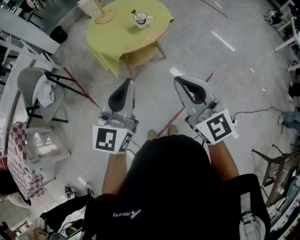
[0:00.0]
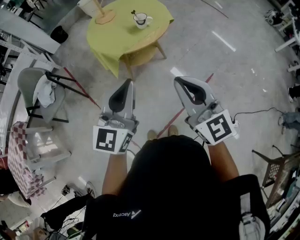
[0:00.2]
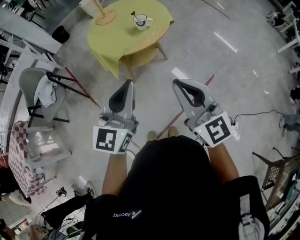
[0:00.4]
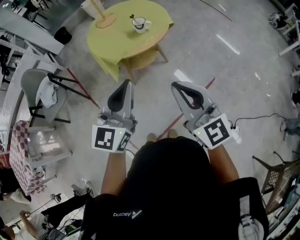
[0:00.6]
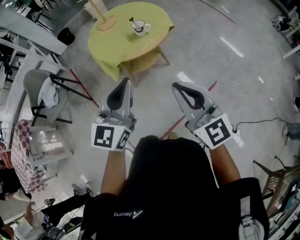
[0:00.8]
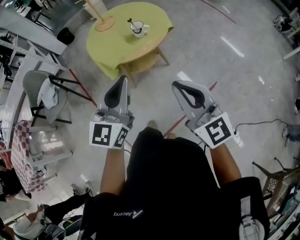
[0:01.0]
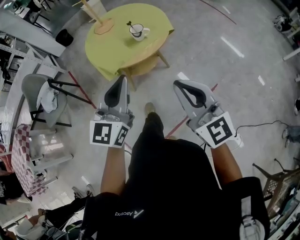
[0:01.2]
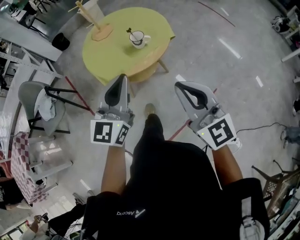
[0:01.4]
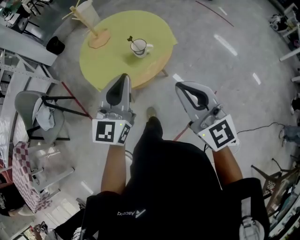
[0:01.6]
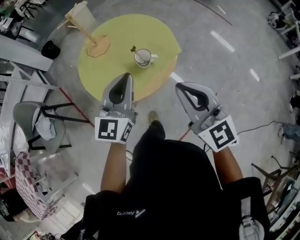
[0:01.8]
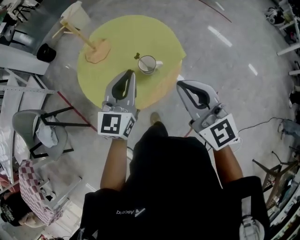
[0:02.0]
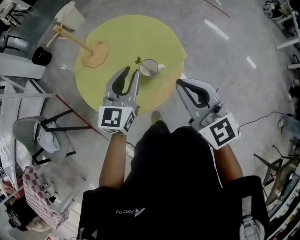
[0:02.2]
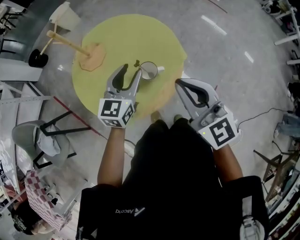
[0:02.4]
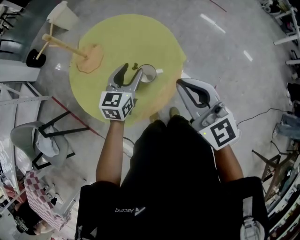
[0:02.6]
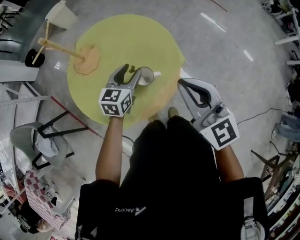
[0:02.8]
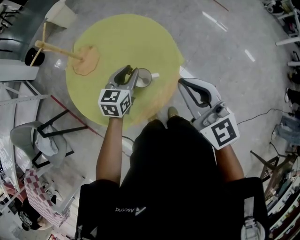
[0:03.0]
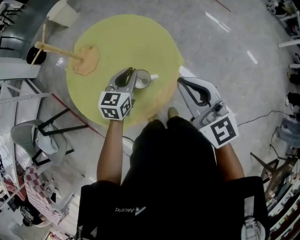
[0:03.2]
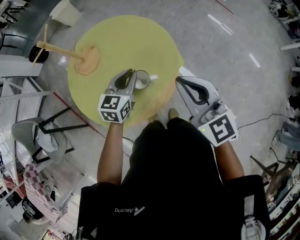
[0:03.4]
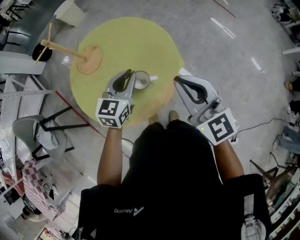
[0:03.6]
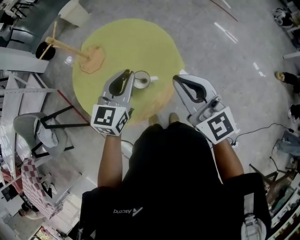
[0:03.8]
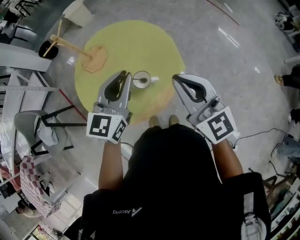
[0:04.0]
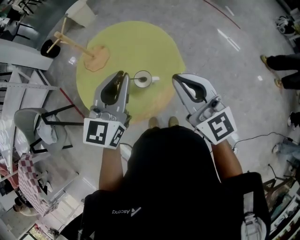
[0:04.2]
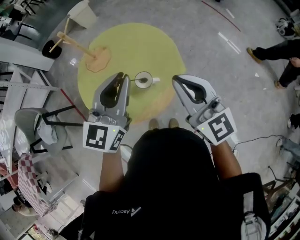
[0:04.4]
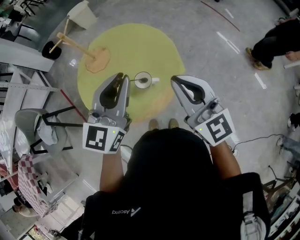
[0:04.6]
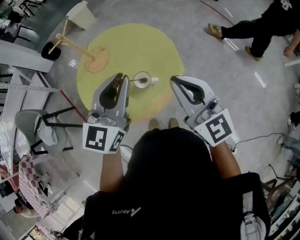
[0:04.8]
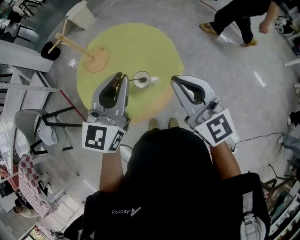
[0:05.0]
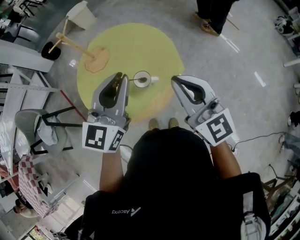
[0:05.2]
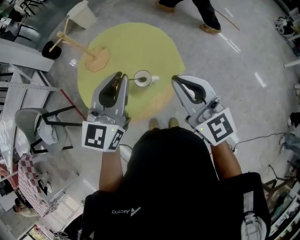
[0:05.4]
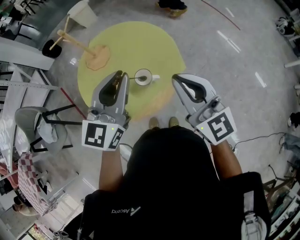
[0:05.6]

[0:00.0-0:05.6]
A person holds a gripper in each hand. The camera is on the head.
0:00.0 to 0:01.4: The right gripper heads forward and to the right, covering some 15 cm. Meanwhile the left gripper shifts some 20 cm forward.
0:01.4 to 0:02.8: The left gripper heads forward and downward, covering roughly 40 cm, turns by about 40 degrees, and opens its fingers. Meanwhile the right gripper moves forward, approximately 30 cm.
0:02.8 to 0:04.2: The left gripper heads upward, covering approximately 20 cm, swivels approximately 30 degrees, and closes.
0:04.2 to 0:05.6: The grippers move only a little.

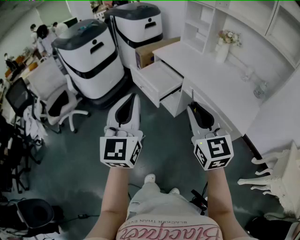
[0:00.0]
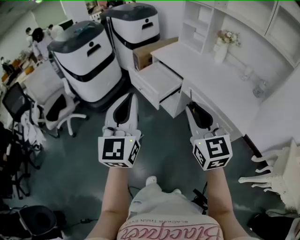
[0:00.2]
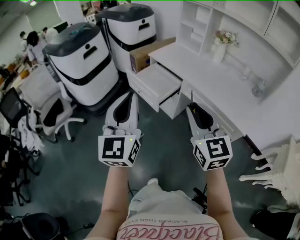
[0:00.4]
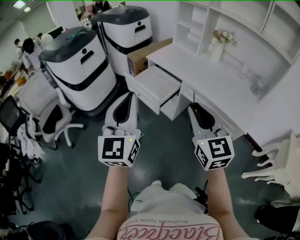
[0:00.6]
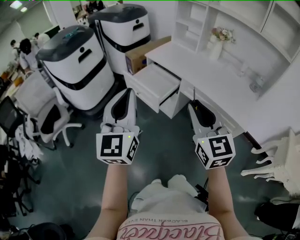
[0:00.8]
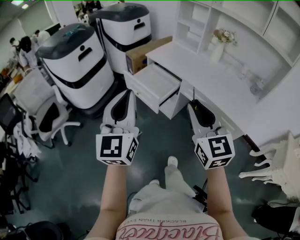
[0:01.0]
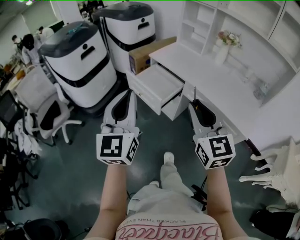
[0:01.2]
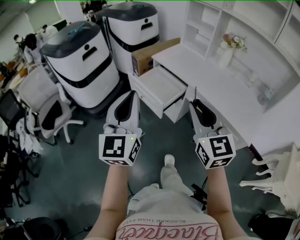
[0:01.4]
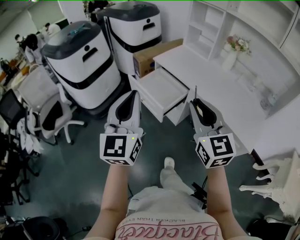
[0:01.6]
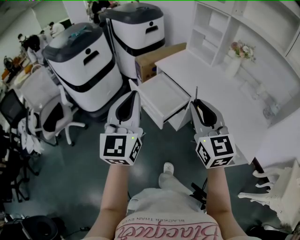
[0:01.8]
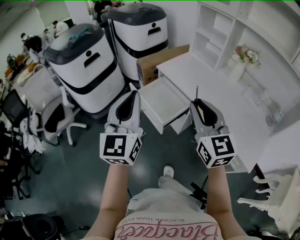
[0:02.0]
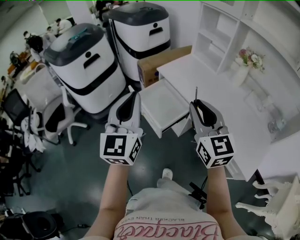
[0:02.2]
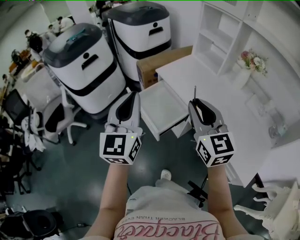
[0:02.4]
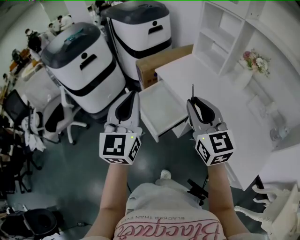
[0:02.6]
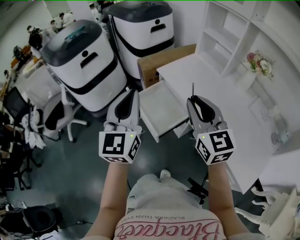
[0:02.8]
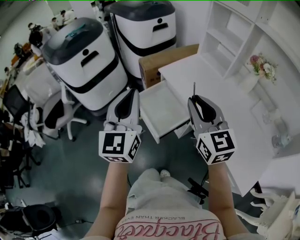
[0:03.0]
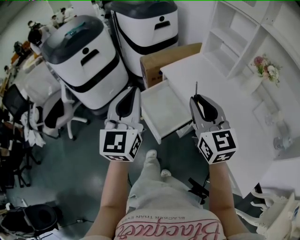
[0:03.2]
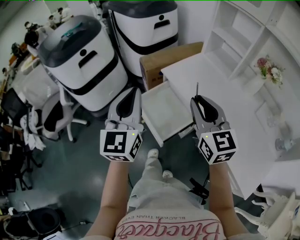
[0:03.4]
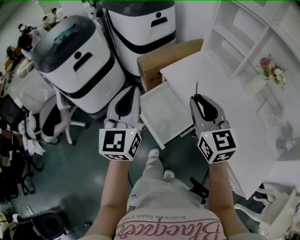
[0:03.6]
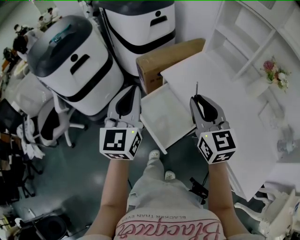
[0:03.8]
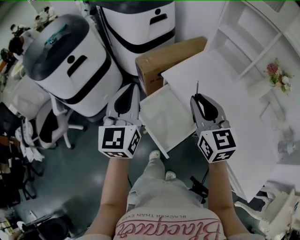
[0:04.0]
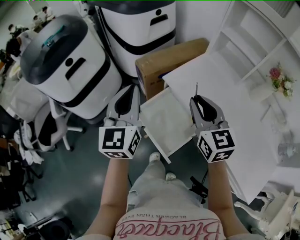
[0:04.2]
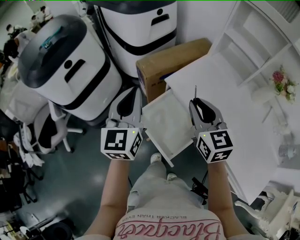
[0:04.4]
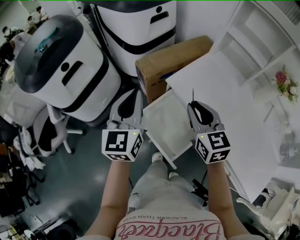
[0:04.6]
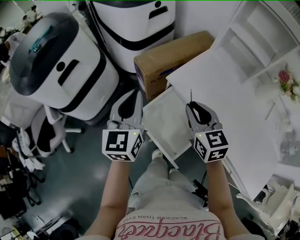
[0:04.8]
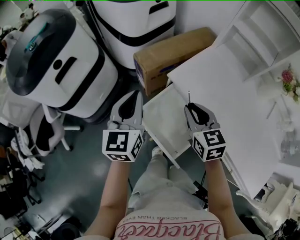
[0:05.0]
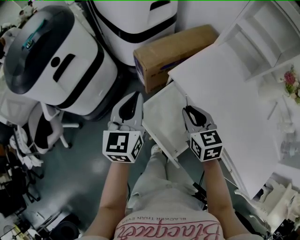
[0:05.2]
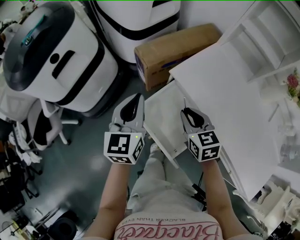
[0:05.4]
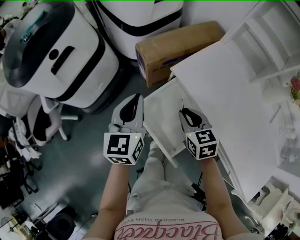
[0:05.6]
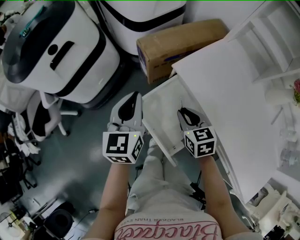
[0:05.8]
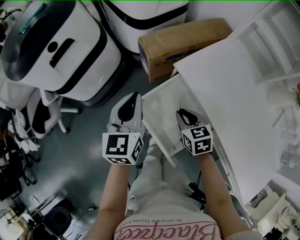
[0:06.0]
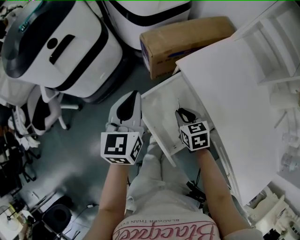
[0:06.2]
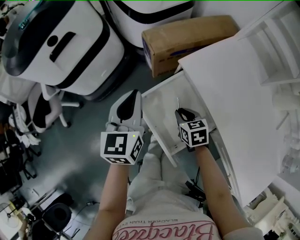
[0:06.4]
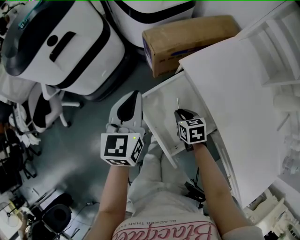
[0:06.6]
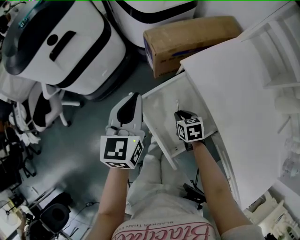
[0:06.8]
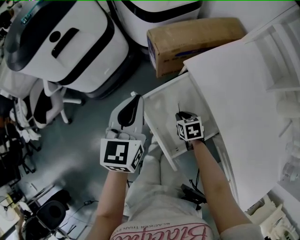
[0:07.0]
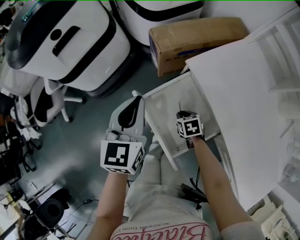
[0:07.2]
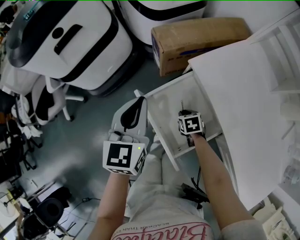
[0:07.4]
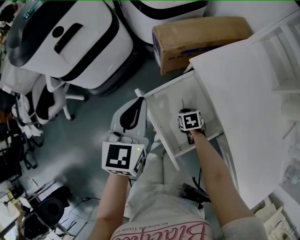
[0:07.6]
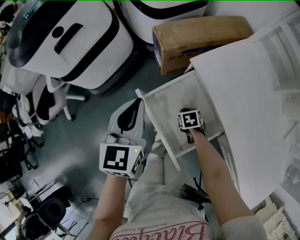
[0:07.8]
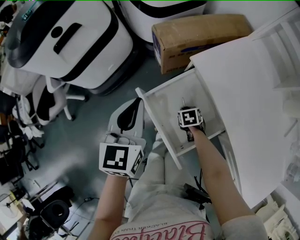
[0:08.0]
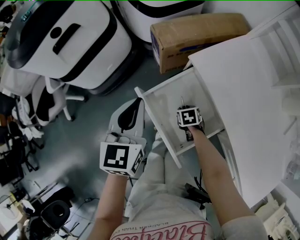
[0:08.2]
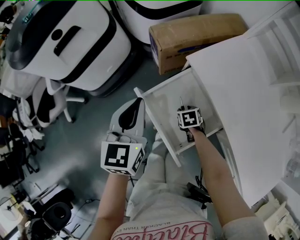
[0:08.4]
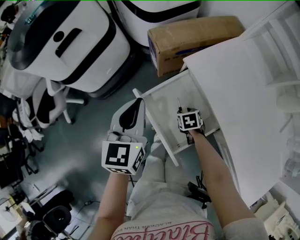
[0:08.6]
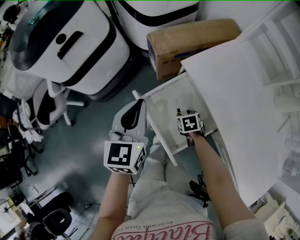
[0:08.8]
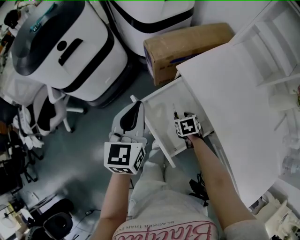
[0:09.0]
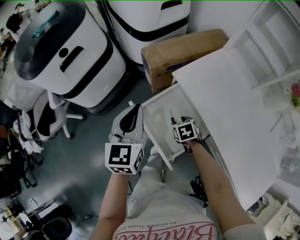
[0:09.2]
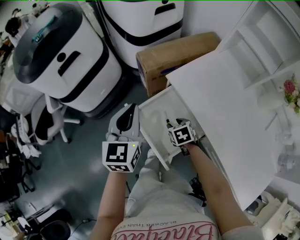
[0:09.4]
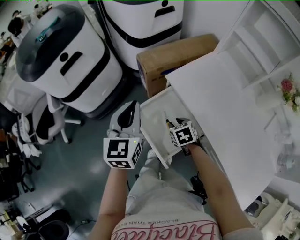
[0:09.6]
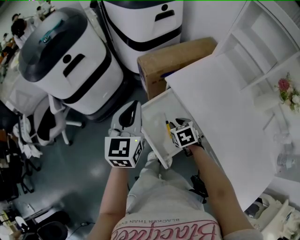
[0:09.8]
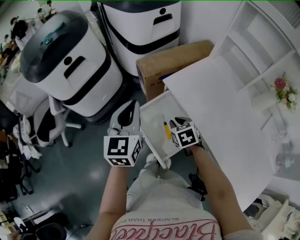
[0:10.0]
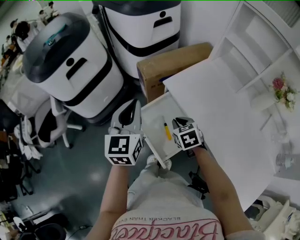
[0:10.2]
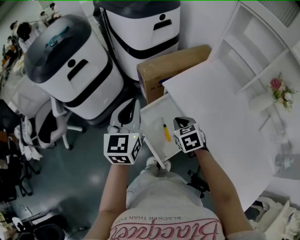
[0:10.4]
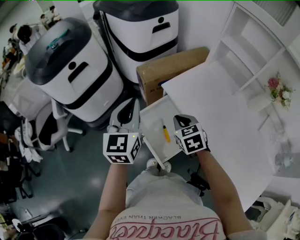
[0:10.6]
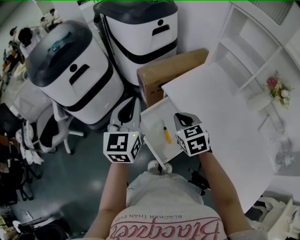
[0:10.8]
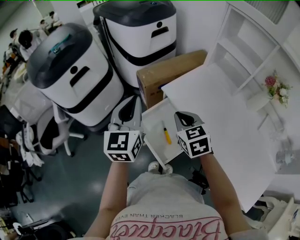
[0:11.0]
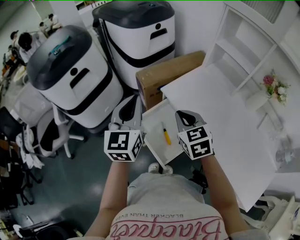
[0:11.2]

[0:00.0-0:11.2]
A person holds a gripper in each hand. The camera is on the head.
0:00.0 to 0:01.6: The two grippers go about 15 cm forward.
0:01.6 to 0:03.2: The grippers both shift forward by approximately 25 cm.
0:03.2 to 0:04.8: The grippers both shift forward and downward by some 25 cm. The right gripper rotates some 20 degrees.
0:04.8 to 0:06.4: The left gripper goes about 10 cm downward, while the right gripper is displaced downward by about 25 cm, and turns by some 30 degrees.
0:06.4 to 0:08.0: The right gripper is displaced downward by roughly 15 cm, and changes its angle by some 20 degrees.
0:08.0 to 0:09.6: The left gripper heads upward, covering approximately 5 cm. Meanwhile the right gripper moves upward, roughly 15 cm.
0:09.6 to 0:11.2: The right gripper is displaced upward by some 25 cm, changes its angle by about 30 degrees, and closes its fingers. Meanwhile the left gripper moves upward, some 10 cm.

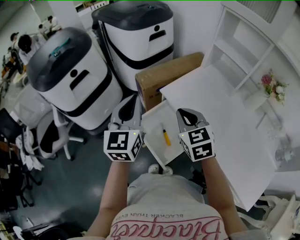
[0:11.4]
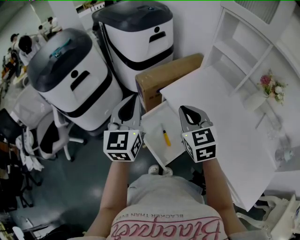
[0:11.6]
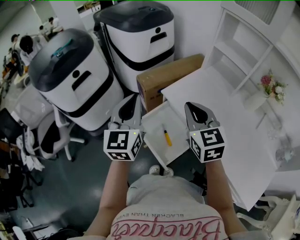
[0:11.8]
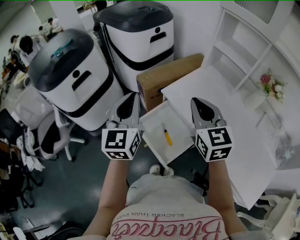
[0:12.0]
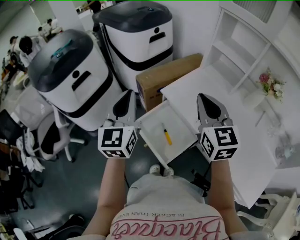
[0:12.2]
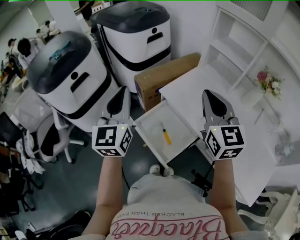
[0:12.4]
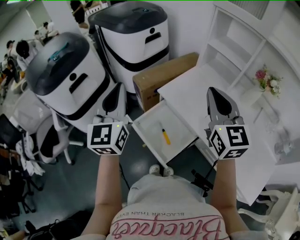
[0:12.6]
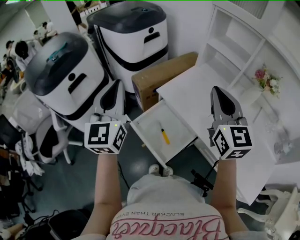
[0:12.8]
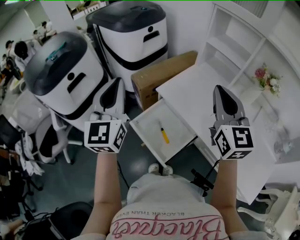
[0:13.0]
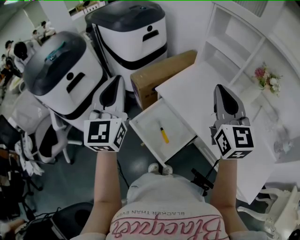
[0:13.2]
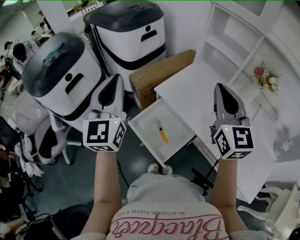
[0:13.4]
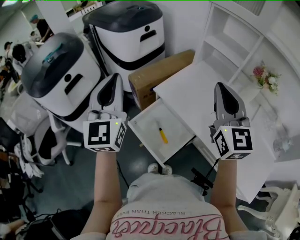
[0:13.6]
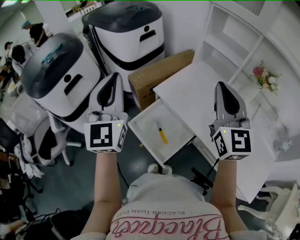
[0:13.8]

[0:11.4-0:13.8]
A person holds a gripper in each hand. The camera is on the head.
0:11.4 to 0:12.6: The right gripper shifts some 15 cm upward and to the right, and swivels about 30 degrees. The left gripper moves upward, some 5 cm.
0:12.6 to 0:13.8: The grippers move only a little.

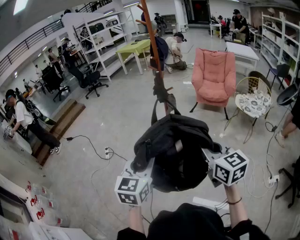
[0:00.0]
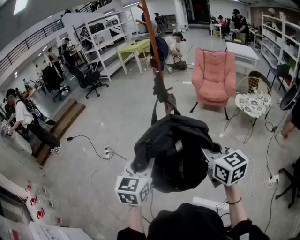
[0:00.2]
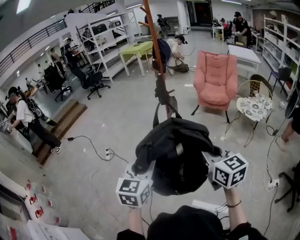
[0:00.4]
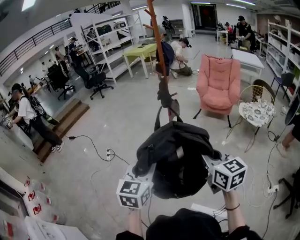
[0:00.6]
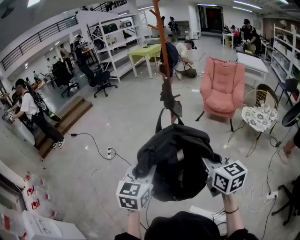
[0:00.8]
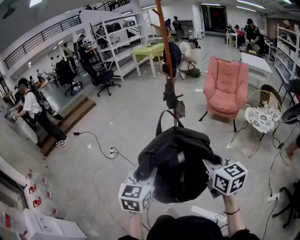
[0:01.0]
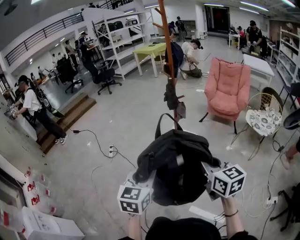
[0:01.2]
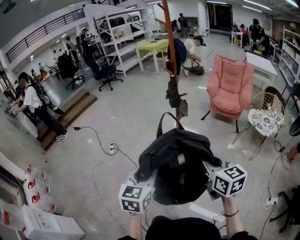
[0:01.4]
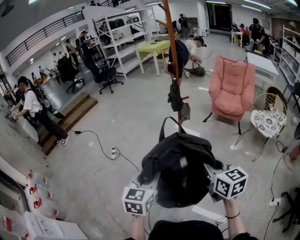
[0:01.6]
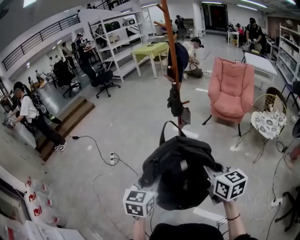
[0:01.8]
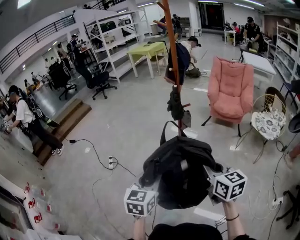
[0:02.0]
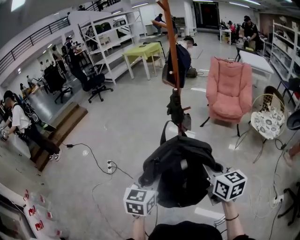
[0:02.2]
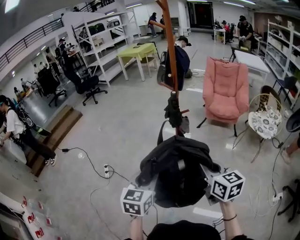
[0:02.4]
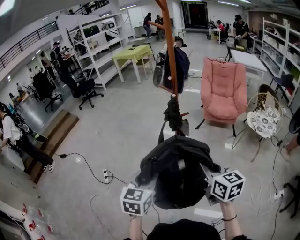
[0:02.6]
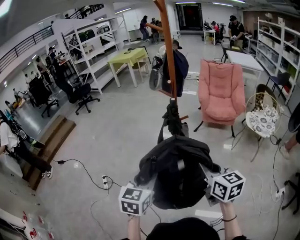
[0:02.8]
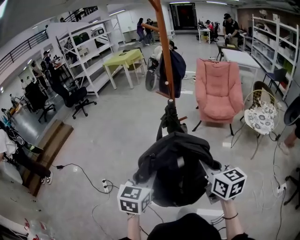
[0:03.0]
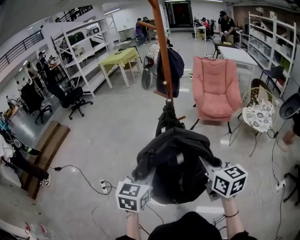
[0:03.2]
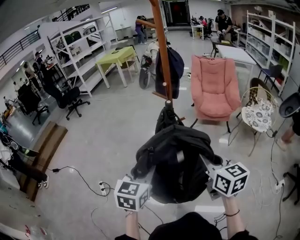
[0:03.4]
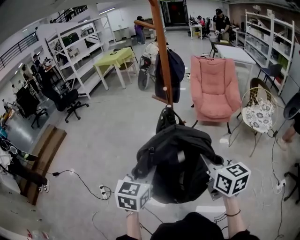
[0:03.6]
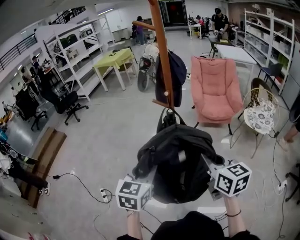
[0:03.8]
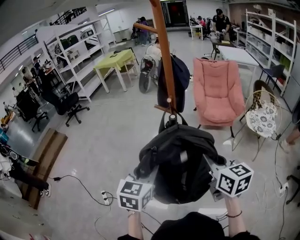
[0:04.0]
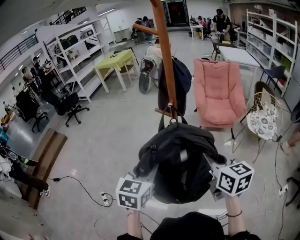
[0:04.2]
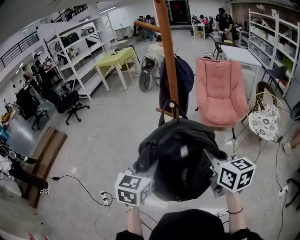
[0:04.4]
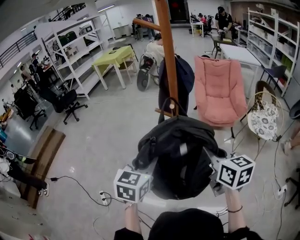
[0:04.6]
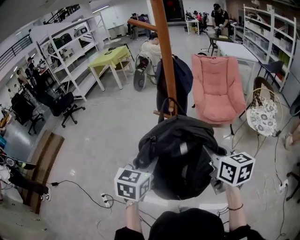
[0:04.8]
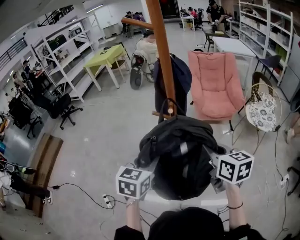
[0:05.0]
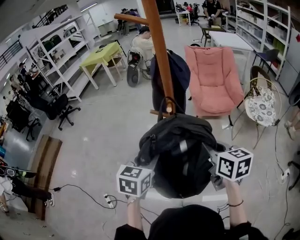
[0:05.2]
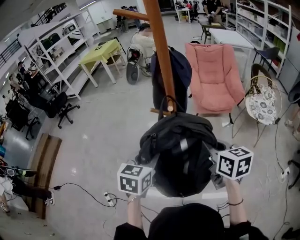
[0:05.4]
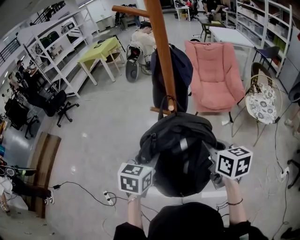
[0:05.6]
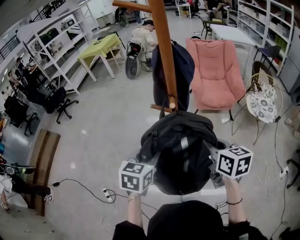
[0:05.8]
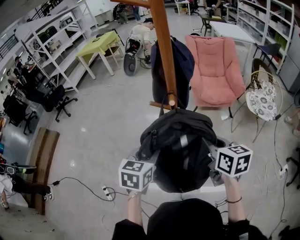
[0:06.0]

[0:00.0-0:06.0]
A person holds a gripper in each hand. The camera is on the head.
0:00.0 to 0:01.6: The left gripper moves downward, roughly 5 cm, while the right gripper is displaced forward by some 5 cm.
0:01.6 to 0:03.0: The grippers both shift forward by roughly 25 cm.
0:03.0 to 0:04.4: The two grippers go about 20 cm forward.
0:04.4 to 0:06.0: Both grippers travel together forward and downward, roughly 10 cm.
